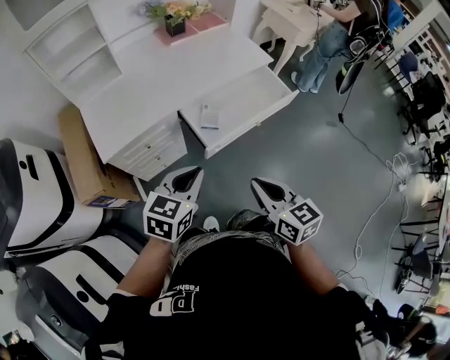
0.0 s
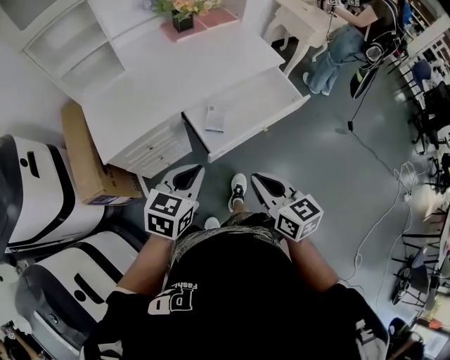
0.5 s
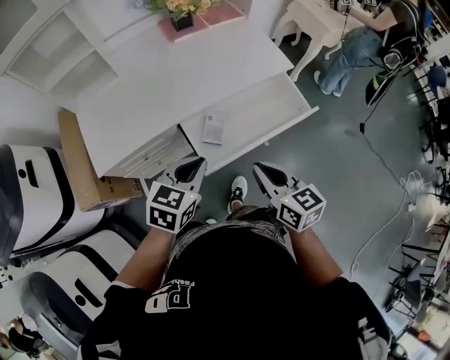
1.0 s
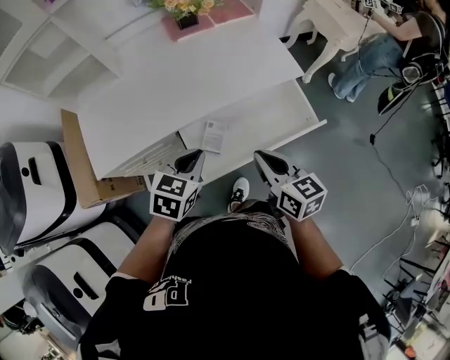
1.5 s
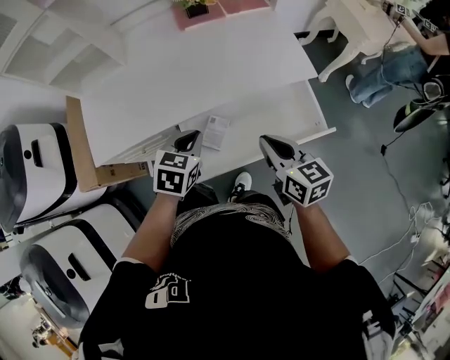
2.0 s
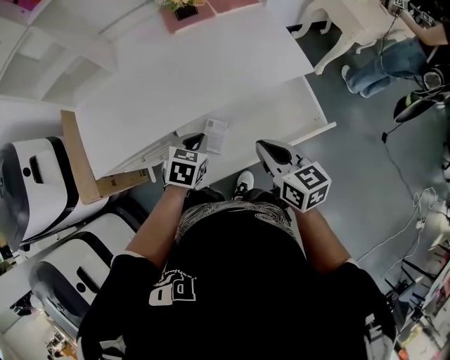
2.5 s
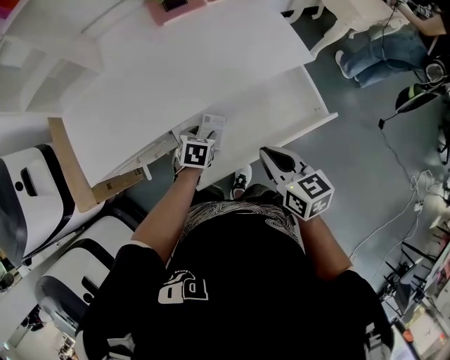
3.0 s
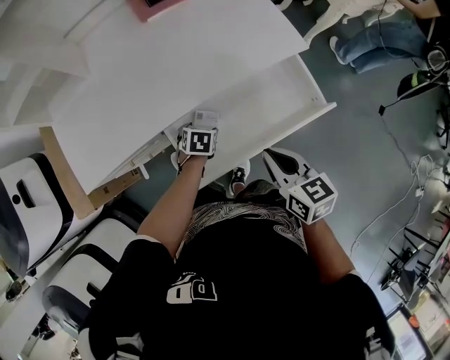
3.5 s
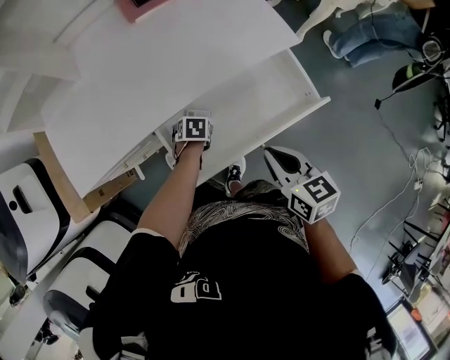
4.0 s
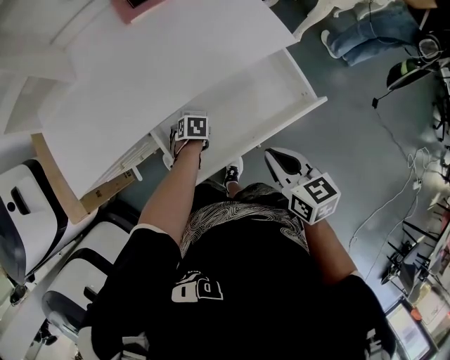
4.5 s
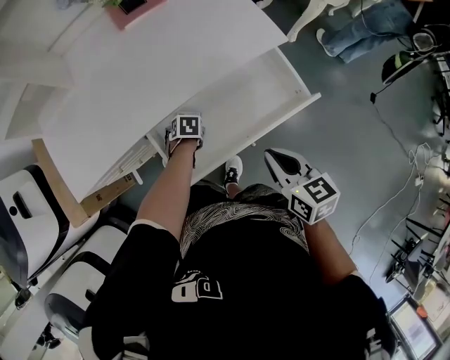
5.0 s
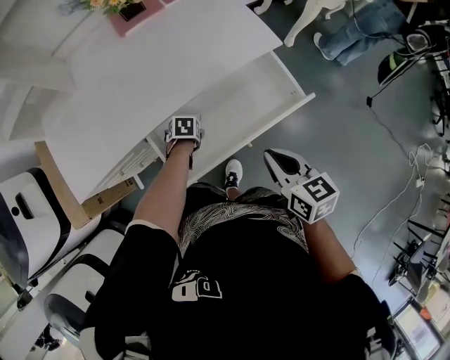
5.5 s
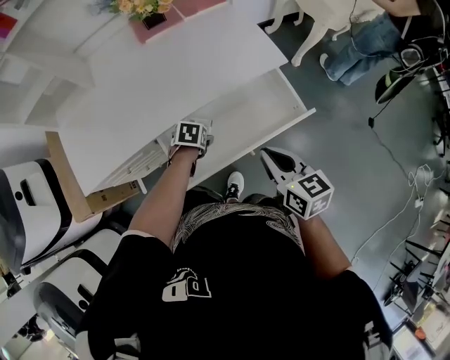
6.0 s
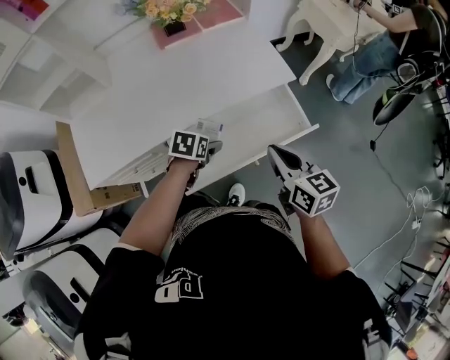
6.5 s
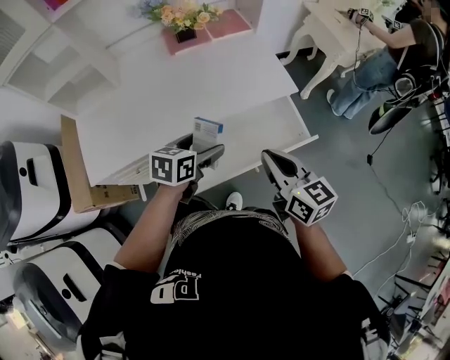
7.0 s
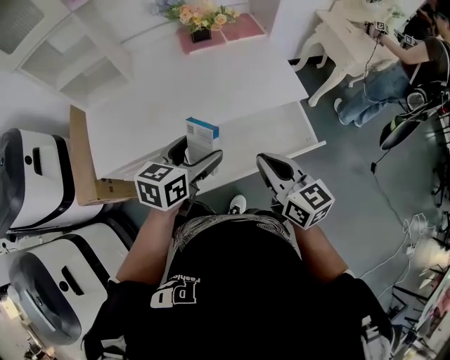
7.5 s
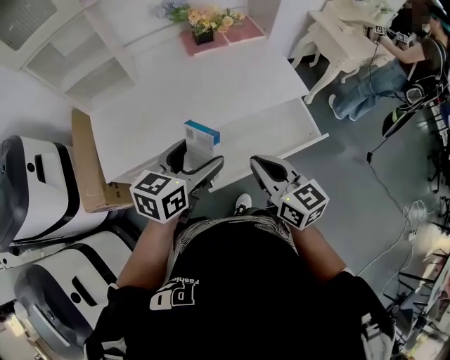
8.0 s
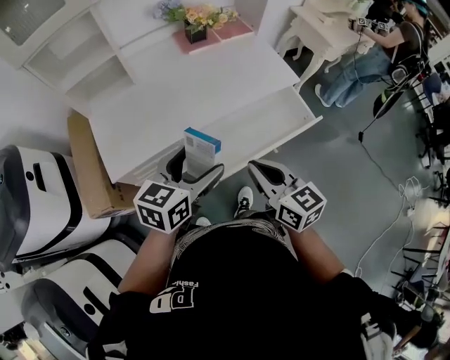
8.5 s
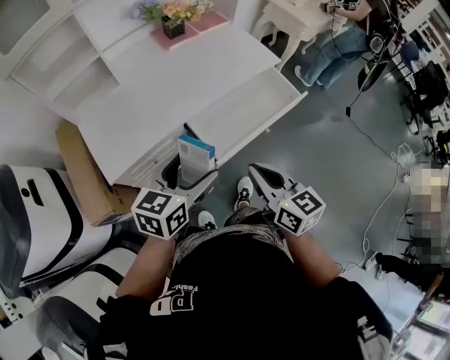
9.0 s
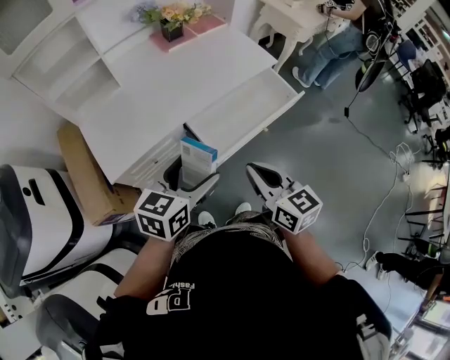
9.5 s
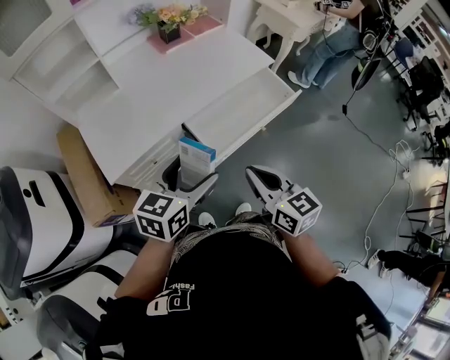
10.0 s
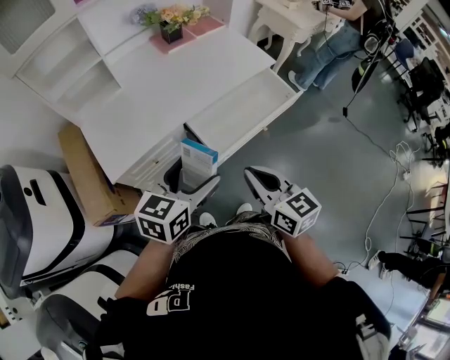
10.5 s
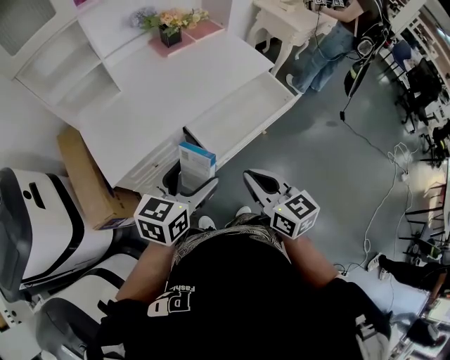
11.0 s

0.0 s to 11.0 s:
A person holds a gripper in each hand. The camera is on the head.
0.0 to 2.0 s: Both grippers move forward, roughly 35 cm. The left gripper rotates some 30 degrees.
2.0 to 3.5 s: The left gripper heads downward, covering some 25 cm, rotates some 20 degrees, and opens up. The right gripper is displaced downward by some 5 cm.
3.5 to 5.5 s: The right gripper moves some 5 cm.
5.5 to 7.5 s: The left gripper goes about 40 cm upward, and angles its fingers upward, by some 60 degrees, while the right gripper shifts some 10 cm upward, and rotates about 20 degrees.
7.5 to 9.0 s: Both grippers move backward and to the left, about 20 cm.
9.0 to 11.0 s: The grippers move only a little.

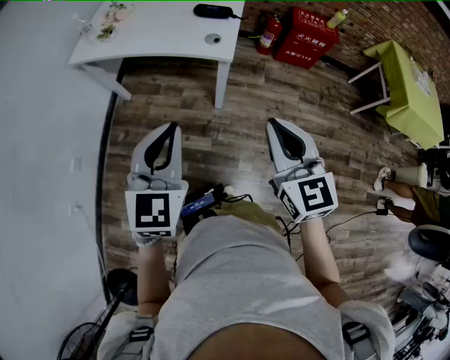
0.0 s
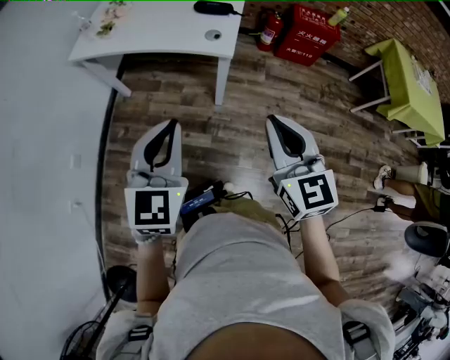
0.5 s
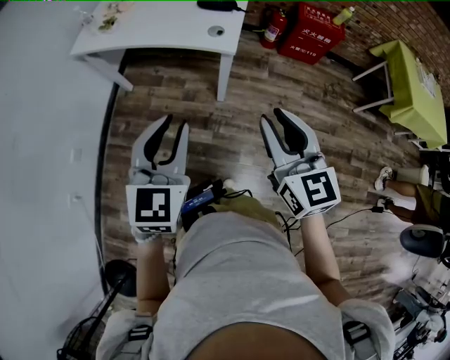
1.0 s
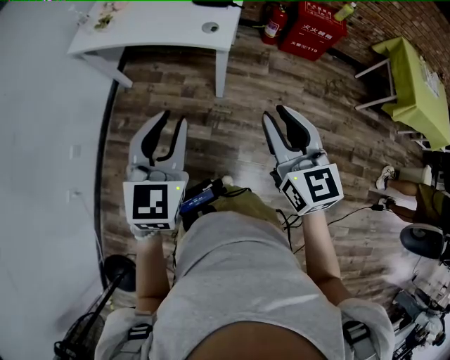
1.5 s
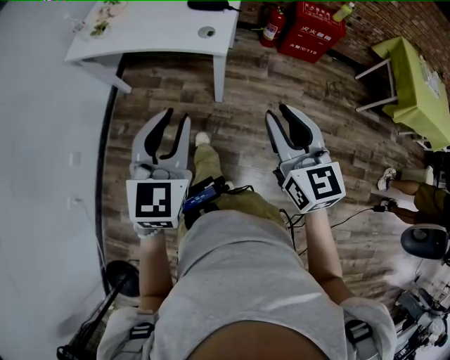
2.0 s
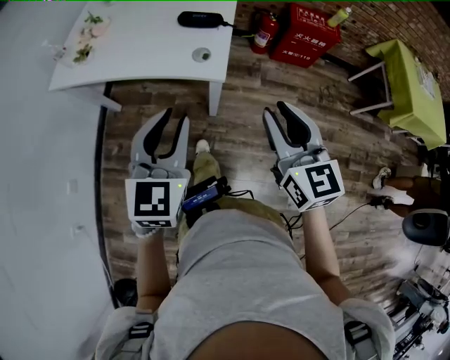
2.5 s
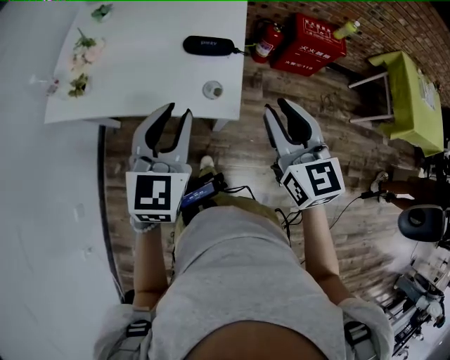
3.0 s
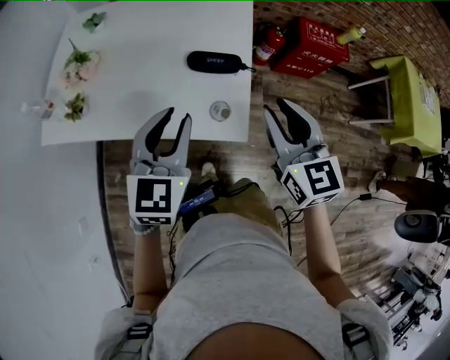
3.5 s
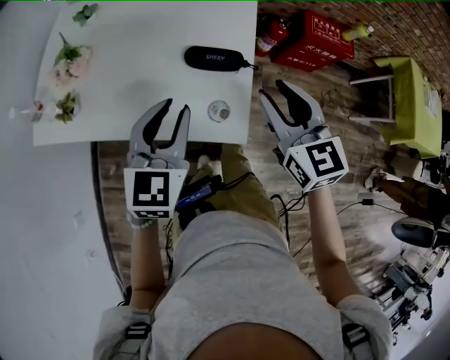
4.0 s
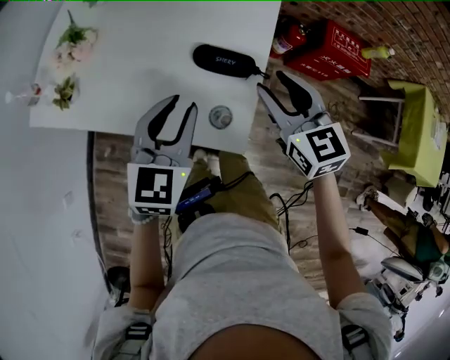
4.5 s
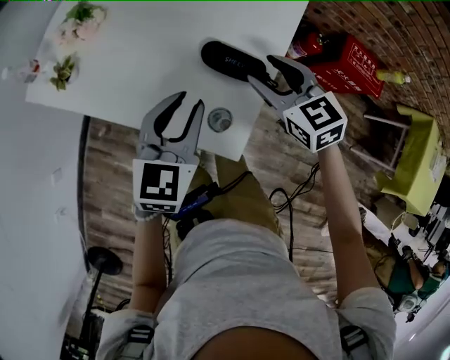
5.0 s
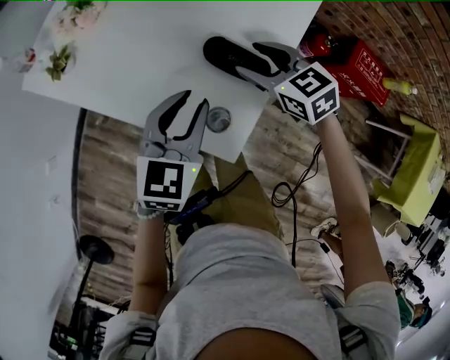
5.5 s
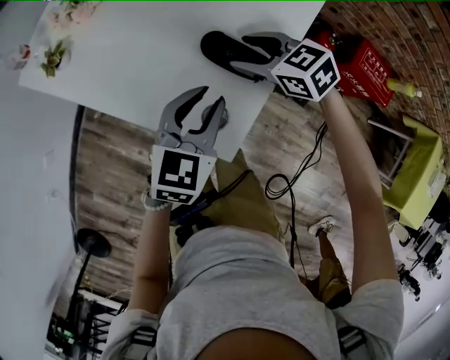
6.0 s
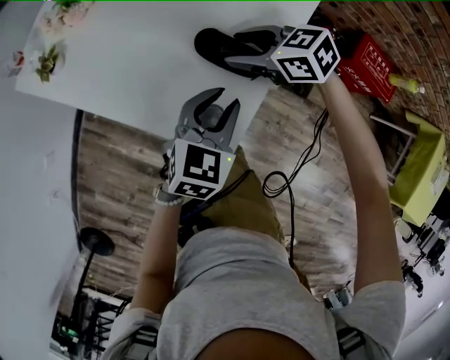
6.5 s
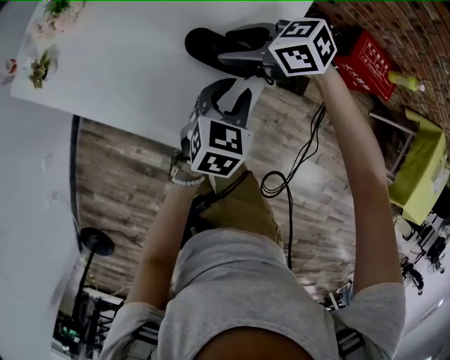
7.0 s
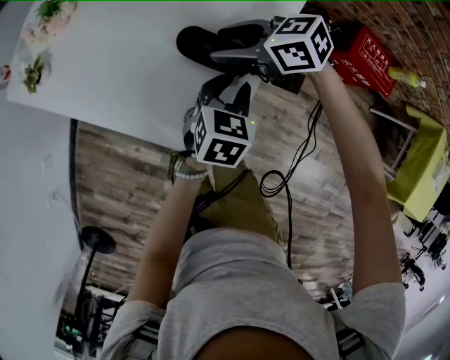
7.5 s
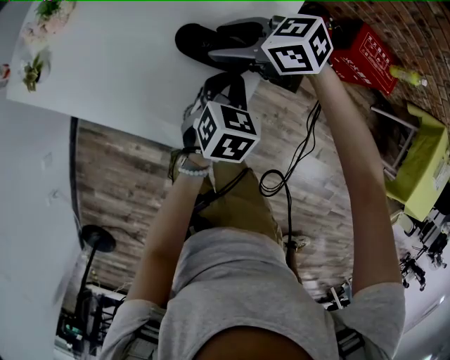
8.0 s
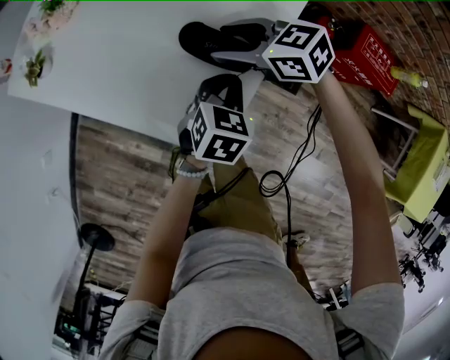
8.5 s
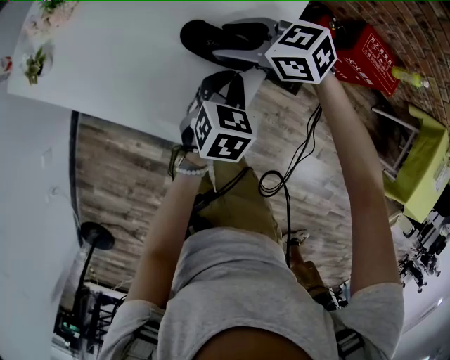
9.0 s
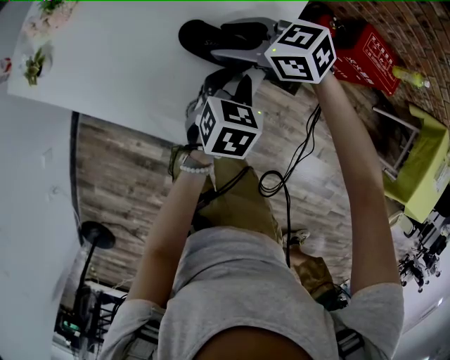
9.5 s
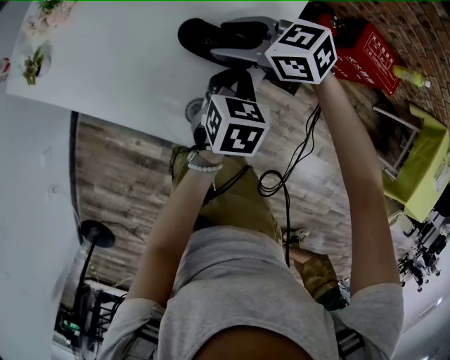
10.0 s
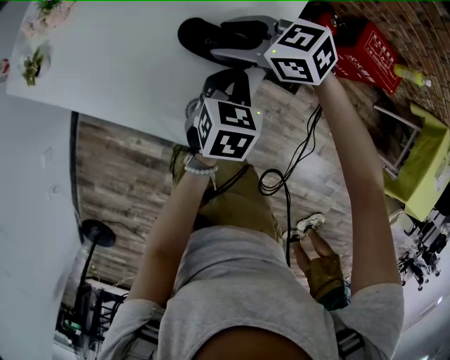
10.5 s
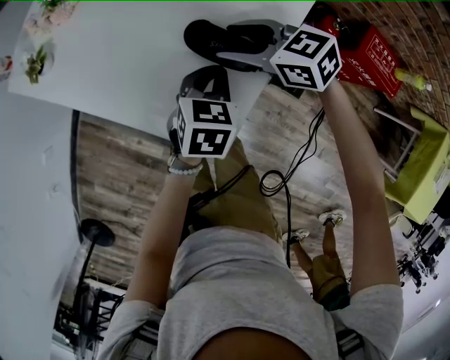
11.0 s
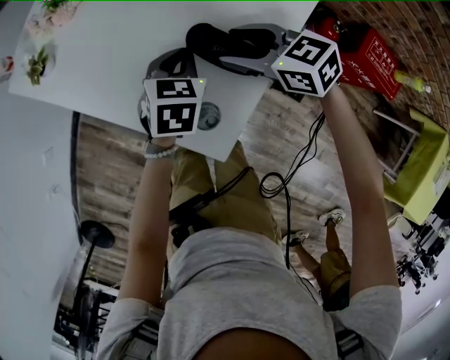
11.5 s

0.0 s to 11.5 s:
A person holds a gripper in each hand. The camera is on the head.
0.0 to 2.0 s: The left gripper ends up about 5 cm from where it was, and opens its fingers. The right gripper shifts by about 5 cm, and opens up.
2.0 to 4.0 s: Both grippers are carried forward, roughly 40 cm.
4.0 to 6.0 s: The left gripper goes approximately 10 cm downward, while the right gripper moves downward, about 15 cm, turns by about 60 degrees, and opens.
6.0 to 7.5 s: The left gripper heads to the right and downward, covering roughly 15 cm.
7.5 to 9.5 s: The left gripper closes, then reopens.
9.5 to 11.5 s: The left gripper shifts about 15 cm forward and to the left, and closes.

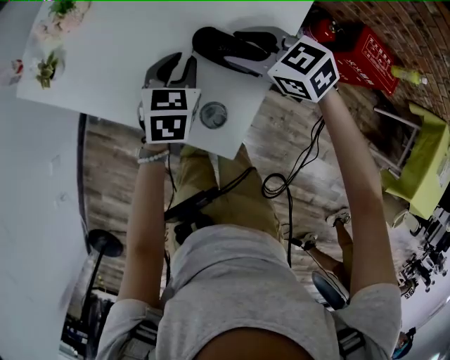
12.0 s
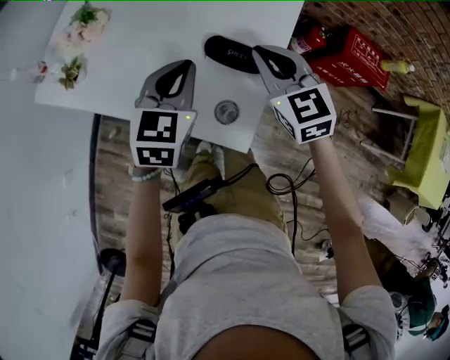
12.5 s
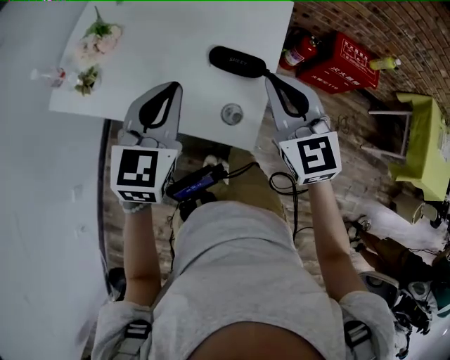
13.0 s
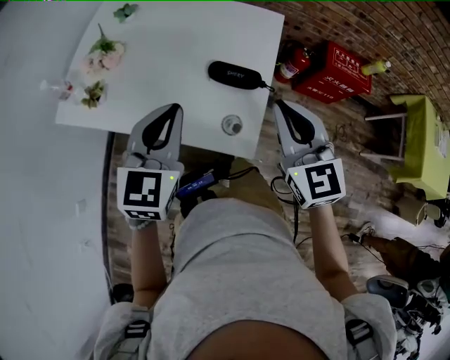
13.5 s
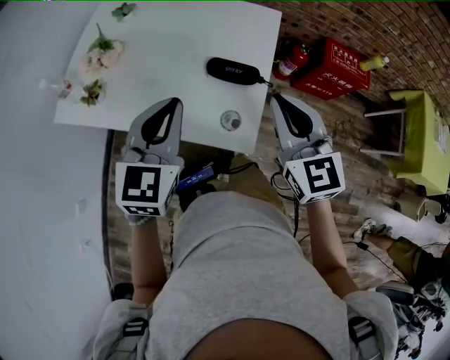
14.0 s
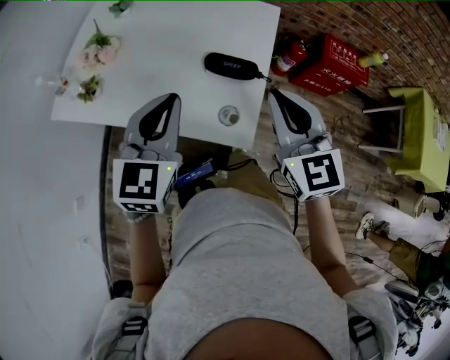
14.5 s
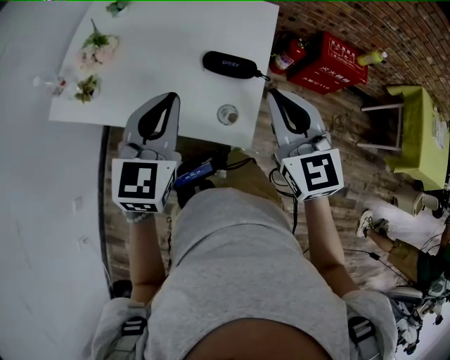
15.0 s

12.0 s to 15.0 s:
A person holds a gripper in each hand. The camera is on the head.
12.0 to 13.5 s: The two grippers go about 20 cm upward. The right gripper swivels some 50 degrees, and closes its fingers, while the left gripper swivels some 30 degrees.
13.5 to 15.0 s: Both grippers stay about where they are.

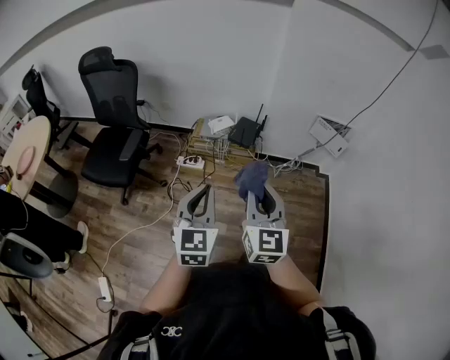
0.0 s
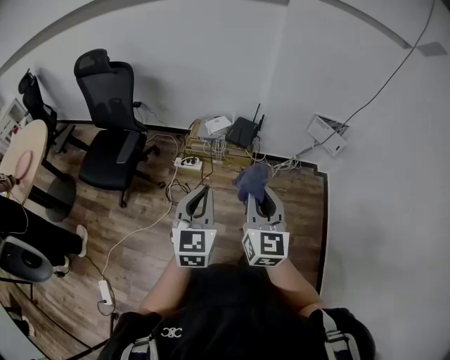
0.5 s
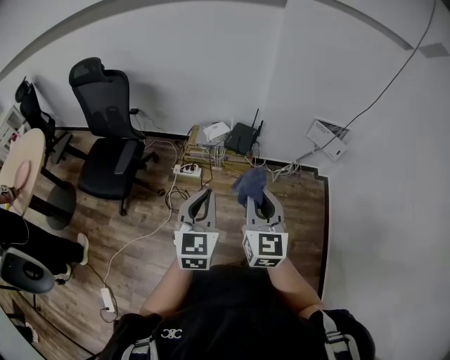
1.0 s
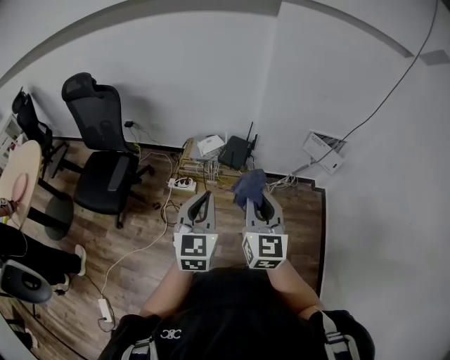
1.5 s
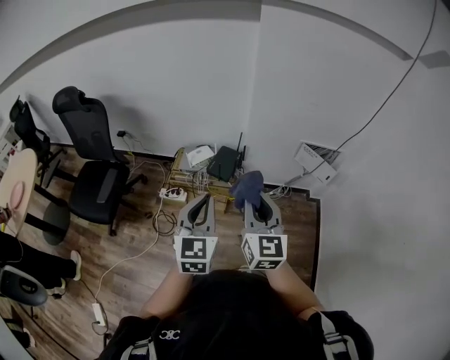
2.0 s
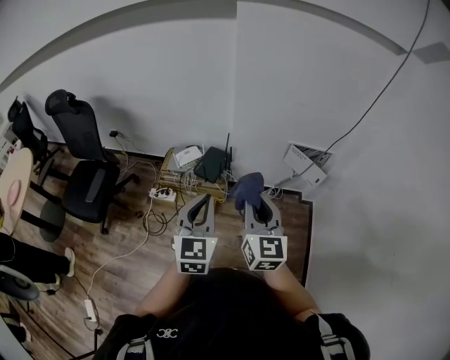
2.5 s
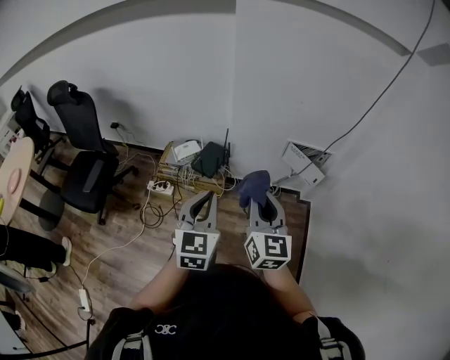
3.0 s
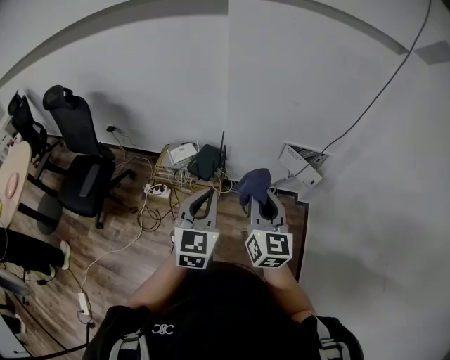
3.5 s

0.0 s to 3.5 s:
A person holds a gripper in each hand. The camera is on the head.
0.0 to 2.0 s: The two grippers go some 25 cm forward and to the right.
2.0 to 3.5 s: The two grippers go some 15 cm to the right.
